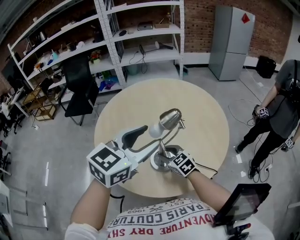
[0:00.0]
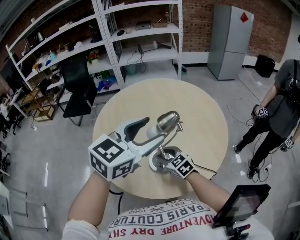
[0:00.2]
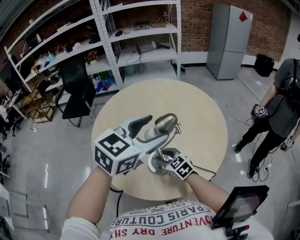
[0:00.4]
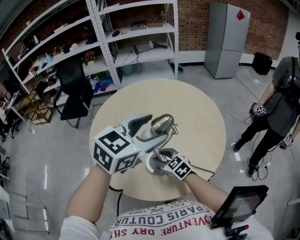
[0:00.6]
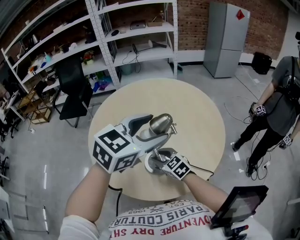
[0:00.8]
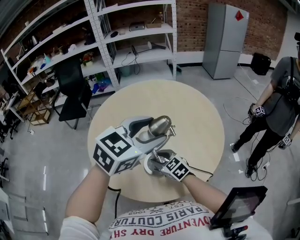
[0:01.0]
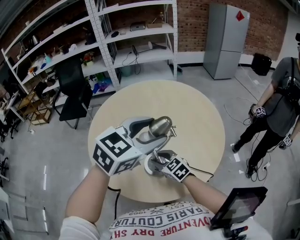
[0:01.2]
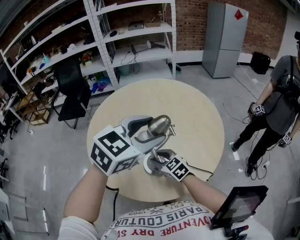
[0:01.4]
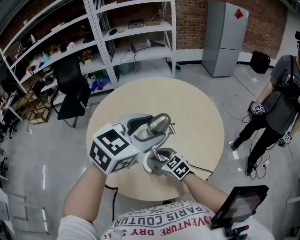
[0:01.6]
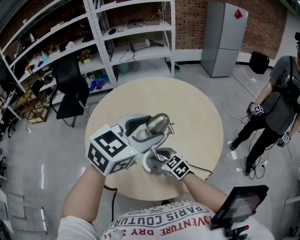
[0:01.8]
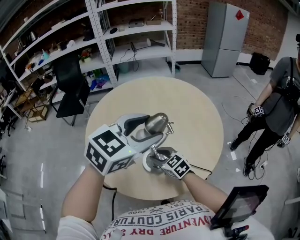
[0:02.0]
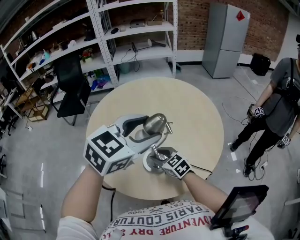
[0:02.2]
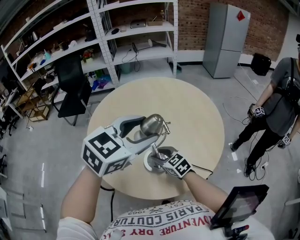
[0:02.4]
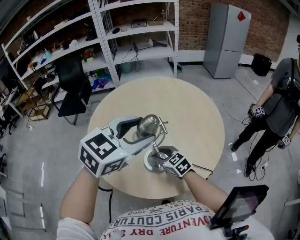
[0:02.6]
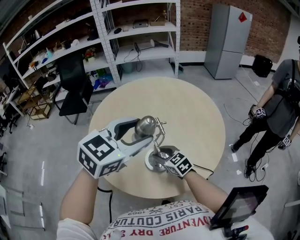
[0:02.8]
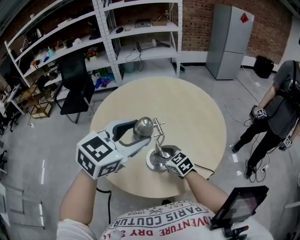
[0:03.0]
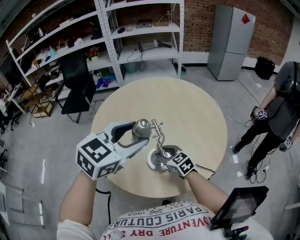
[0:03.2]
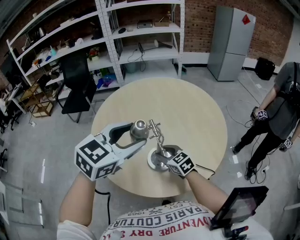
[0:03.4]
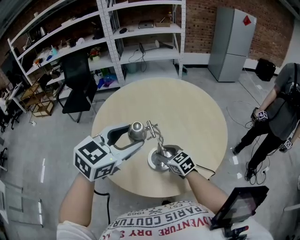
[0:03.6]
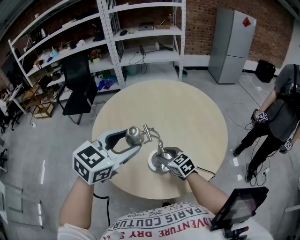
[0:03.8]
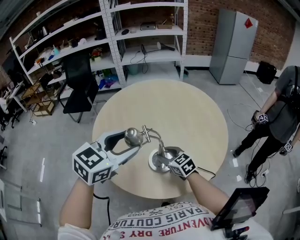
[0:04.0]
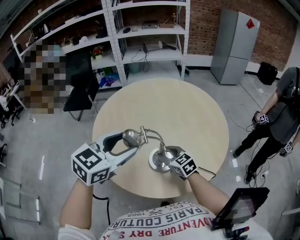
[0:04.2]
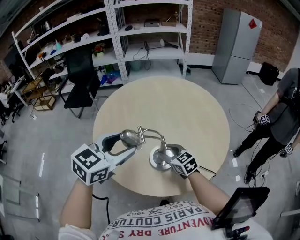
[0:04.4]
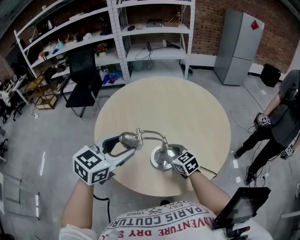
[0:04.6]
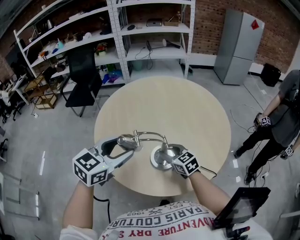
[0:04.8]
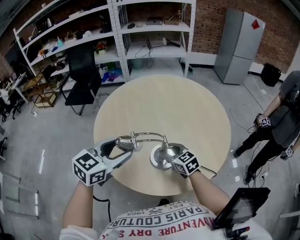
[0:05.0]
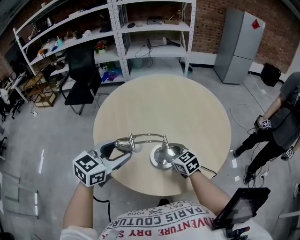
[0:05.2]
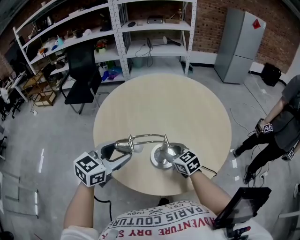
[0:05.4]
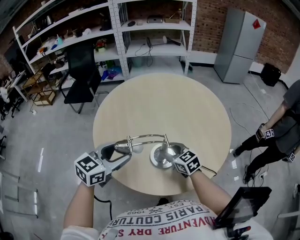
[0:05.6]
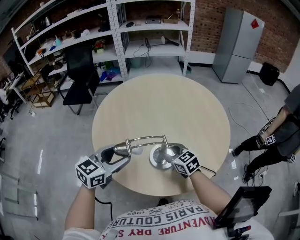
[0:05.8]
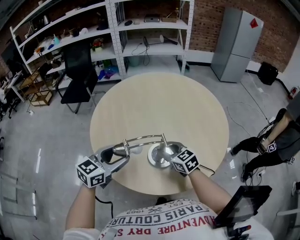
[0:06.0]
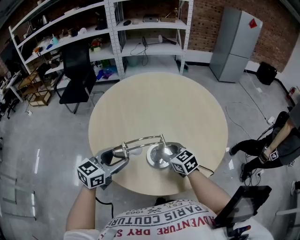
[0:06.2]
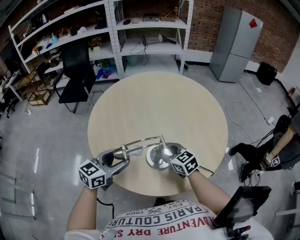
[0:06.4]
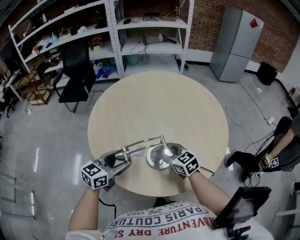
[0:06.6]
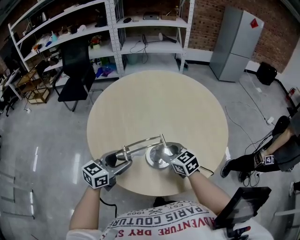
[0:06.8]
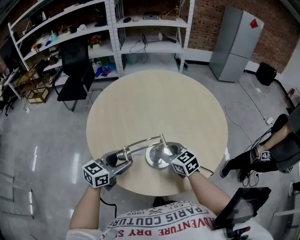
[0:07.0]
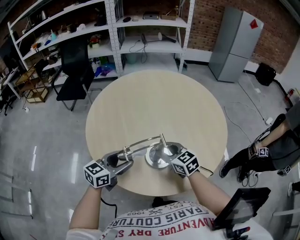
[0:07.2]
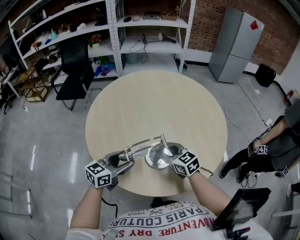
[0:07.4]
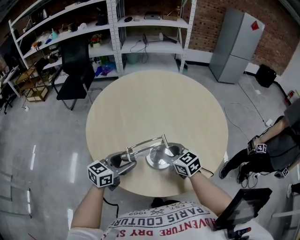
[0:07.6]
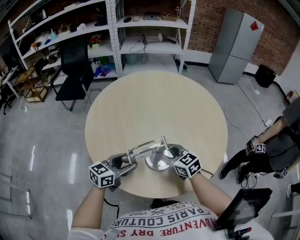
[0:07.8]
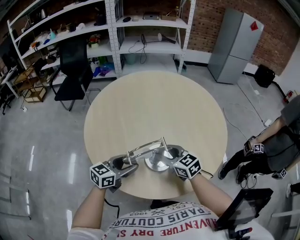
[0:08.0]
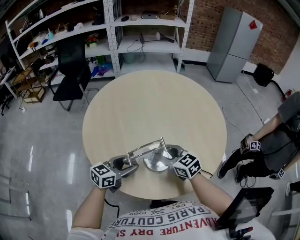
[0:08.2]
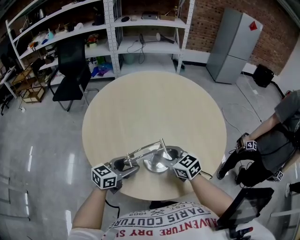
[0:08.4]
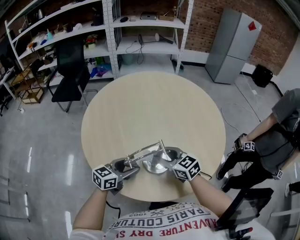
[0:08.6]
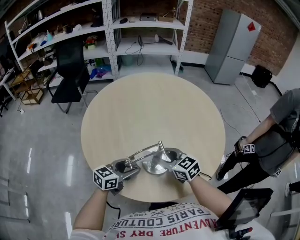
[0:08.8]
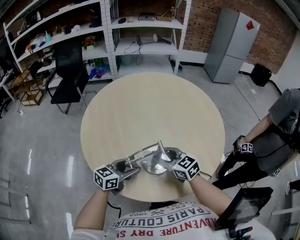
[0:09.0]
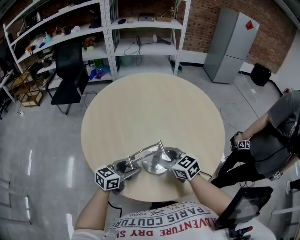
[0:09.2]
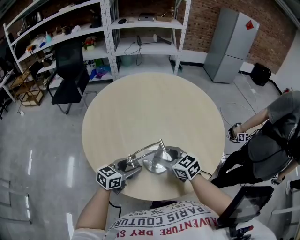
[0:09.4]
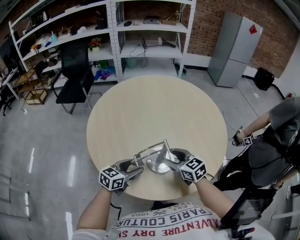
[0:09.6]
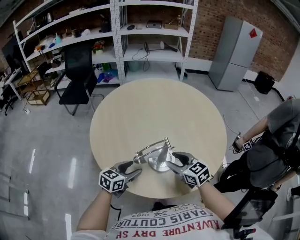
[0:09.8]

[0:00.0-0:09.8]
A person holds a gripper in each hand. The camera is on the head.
0:00.0 to 0:01.4: The left gripper heads to the right, covering about 5 cm.
0:01.4 to 0:02.8: The left gripper shifts about 5 cm to the left.
0:02.8 to 0:04.2: The left gripper is displaced to the left by roughly 10 cm.
0:04.2 to 0:05.6: The left gripper goes some 10 cm downward and to the left.
0:05.6 to 0:07.0: The left gripper shifts roughly 10 cm downward.
0:07.0 to 0:08.4: The left gripper heads downward, covering some 5 cm.
0:08.4 to 0:09.8: The grippers move only a little.

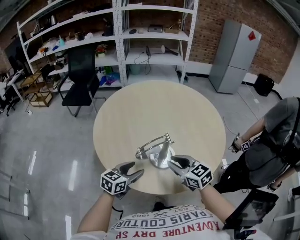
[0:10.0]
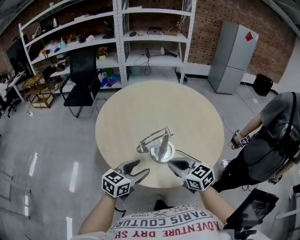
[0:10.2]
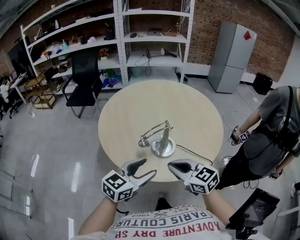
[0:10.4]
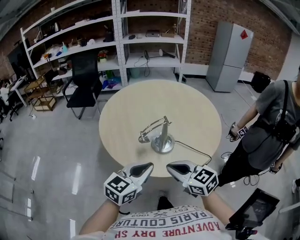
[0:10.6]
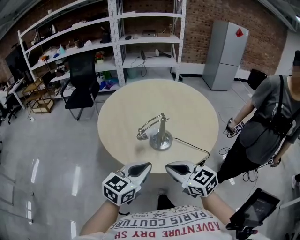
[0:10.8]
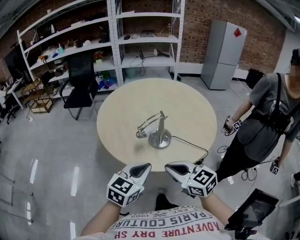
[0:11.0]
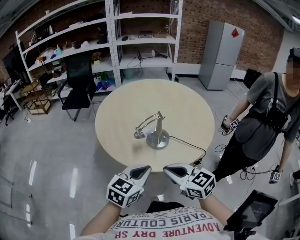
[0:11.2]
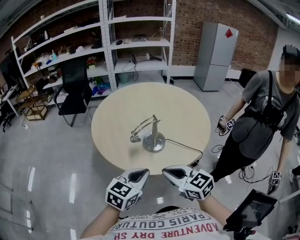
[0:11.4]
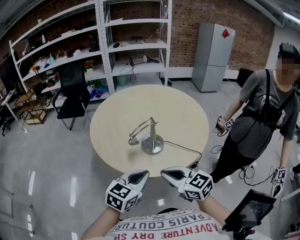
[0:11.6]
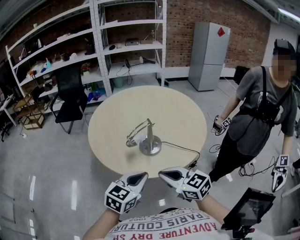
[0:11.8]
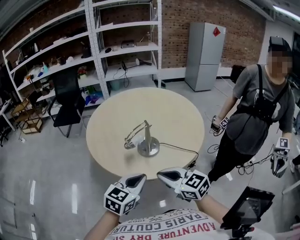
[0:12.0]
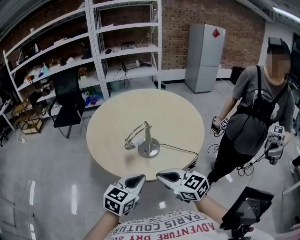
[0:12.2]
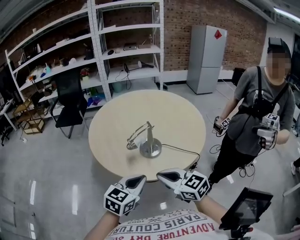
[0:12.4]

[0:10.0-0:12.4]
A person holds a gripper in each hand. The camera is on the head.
0:10.0 to 0:11.2: Both grippers move backward and upward, roughly 20 cm. The left gripper closes up. The right gripper closes its fingers.
0:11.2 to 0:12.4: The two grippers keep their place.

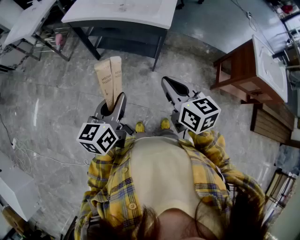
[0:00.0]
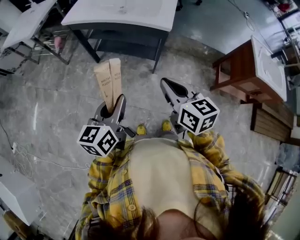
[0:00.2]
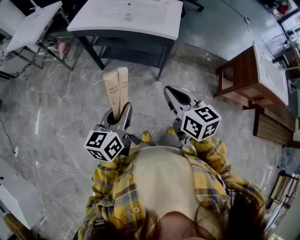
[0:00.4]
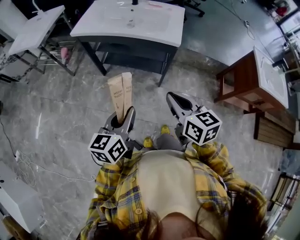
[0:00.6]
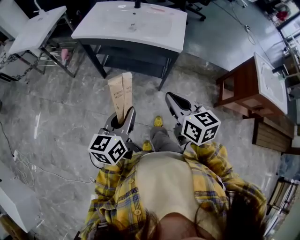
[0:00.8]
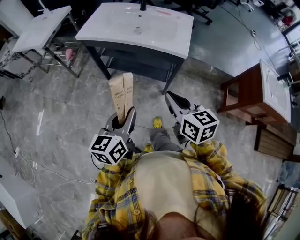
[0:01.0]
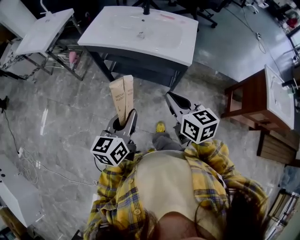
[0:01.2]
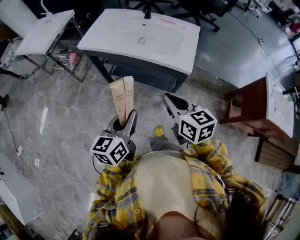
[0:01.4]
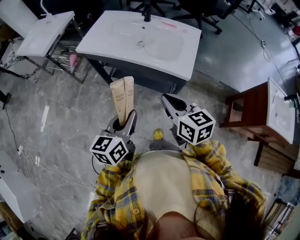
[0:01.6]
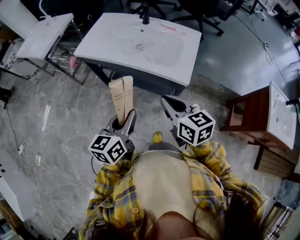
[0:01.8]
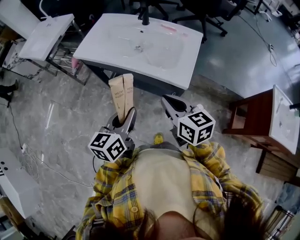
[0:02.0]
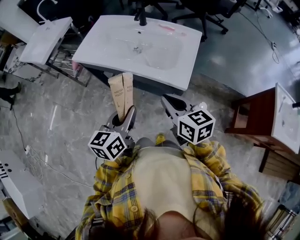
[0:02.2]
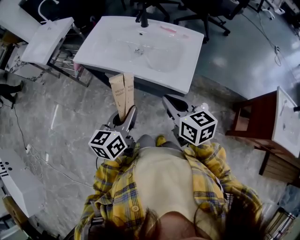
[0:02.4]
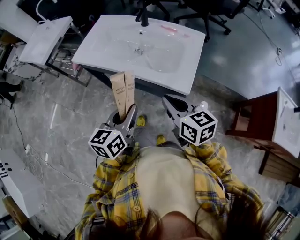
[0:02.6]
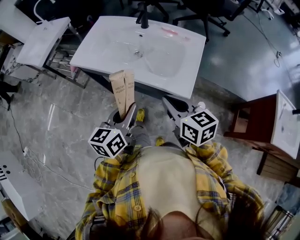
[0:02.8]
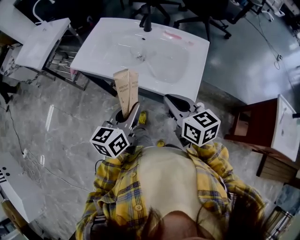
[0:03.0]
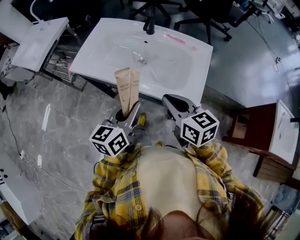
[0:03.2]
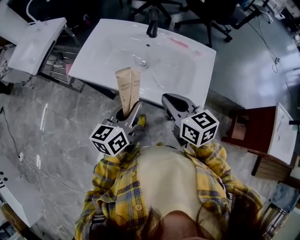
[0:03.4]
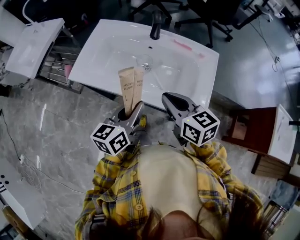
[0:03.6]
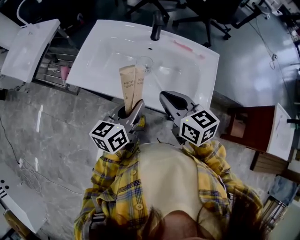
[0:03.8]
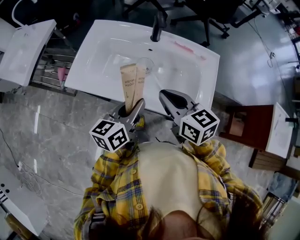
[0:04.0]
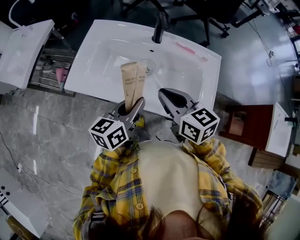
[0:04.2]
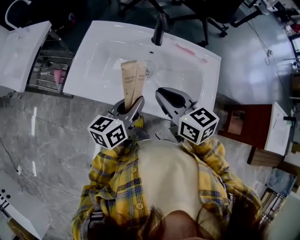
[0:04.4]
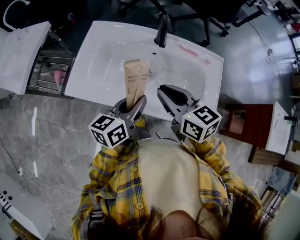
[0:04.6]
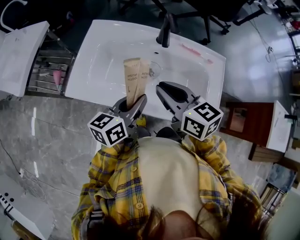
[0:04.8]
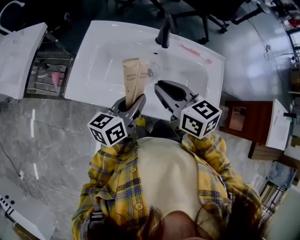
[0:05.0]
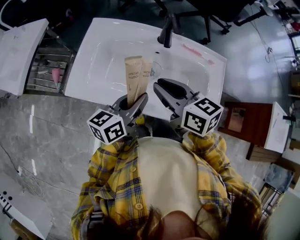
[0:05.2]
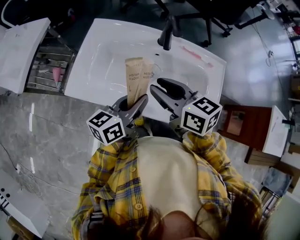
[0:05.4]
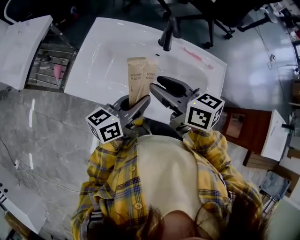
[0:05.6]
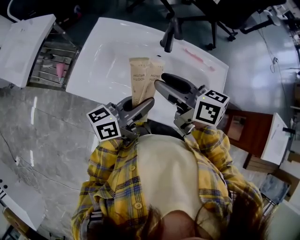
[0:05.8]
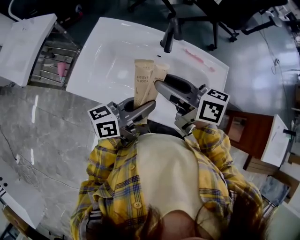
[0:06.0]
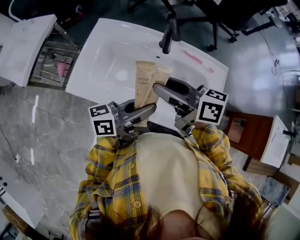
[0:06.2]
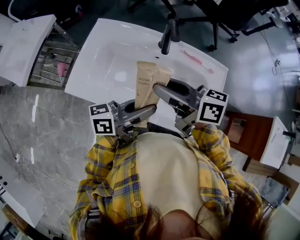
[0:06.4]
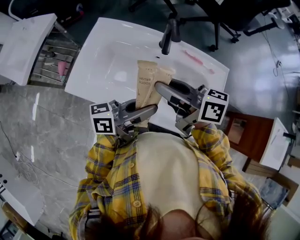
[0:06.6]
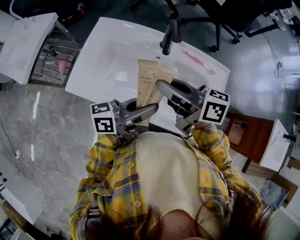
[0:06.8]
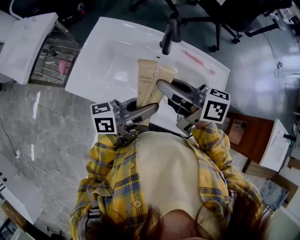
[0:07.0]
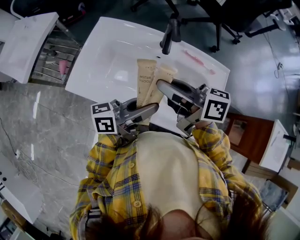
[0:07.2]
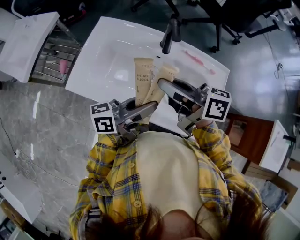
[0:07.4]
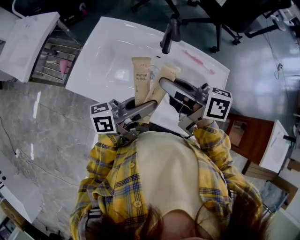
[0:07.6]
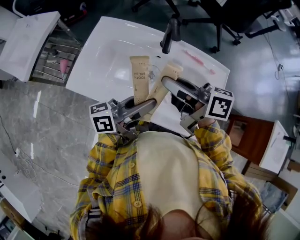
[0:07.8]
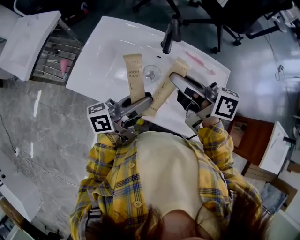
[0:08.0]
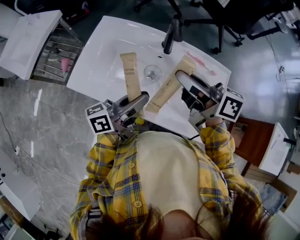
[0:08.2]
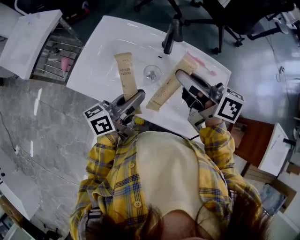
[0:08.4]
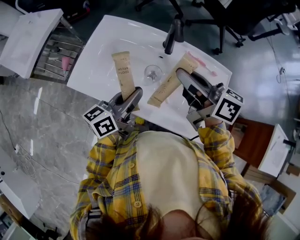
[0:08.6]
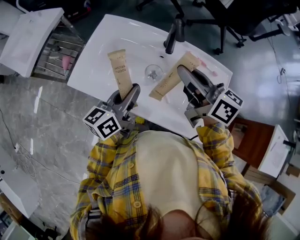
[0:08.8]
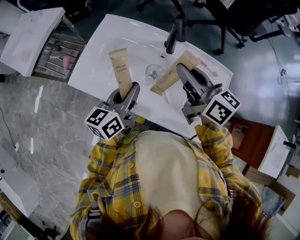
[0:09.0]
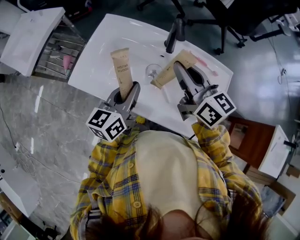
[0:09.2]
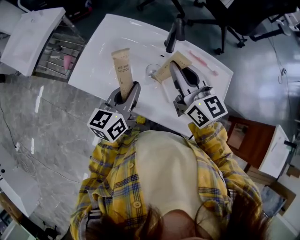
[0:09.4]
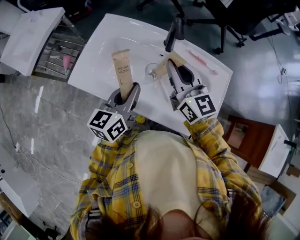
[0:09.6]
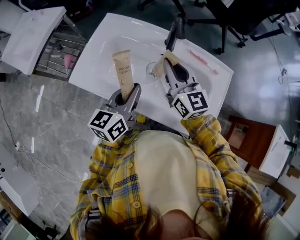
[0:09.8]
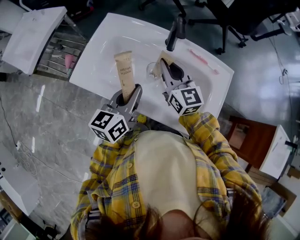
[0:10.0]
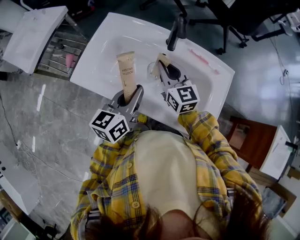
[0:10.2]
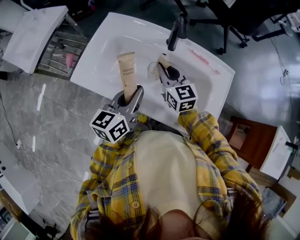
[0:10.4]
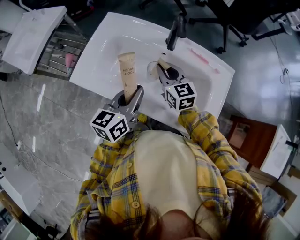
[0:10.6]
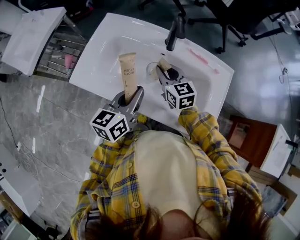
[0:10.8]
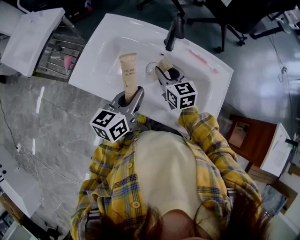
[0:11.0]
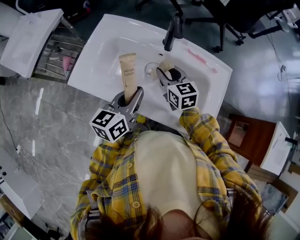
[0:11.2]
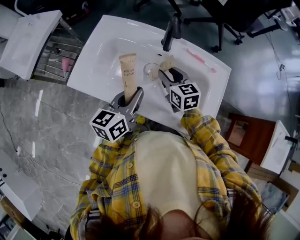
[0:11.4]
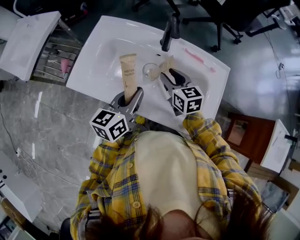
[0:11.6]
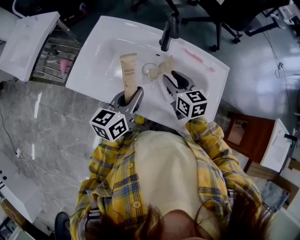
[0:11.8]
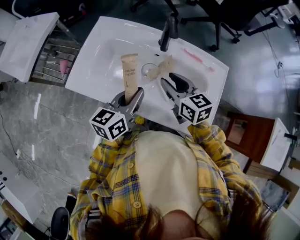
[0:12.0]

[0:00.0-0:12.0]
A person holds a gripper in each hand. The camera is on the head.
0:00.0 to 0:01.6: Both grippers move forward, about 20 cm.
0:01.6 to 0:03.0: Both grippers move forward, approximately 15 cm.
0:03.0 to 0:04.4: The left gripper goes some 15 cm forward. The right gripper goes about 20 cm forward and to the left.
0:04.4 to 0:06.0: The left gripper changes its angle by approximately 30 degrees, while the right gripper shifts about 5 cm forward, changes its angle by roughly 30 degrees, and opens its fingers.
0:06.0 to 0:07.6: The right gripper closes up.
0:07.6 to 0:09.0: The right gripper shifts by some 5 cm, and rotates some 30 degrees; the left gripper is displaced to the left by about 5 cm, and changes its angle by roughly 40 degrees.
0:09.0 to 0:10.4: The right gripper shifts some 15 cm downward, and swivels approximately 30 degrees.
0:10.4 to 0:12.0: The right gripper shifts some 5 cm backward, and opens.
